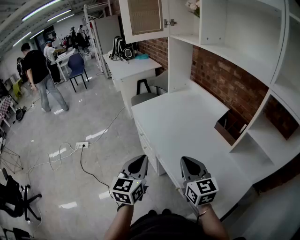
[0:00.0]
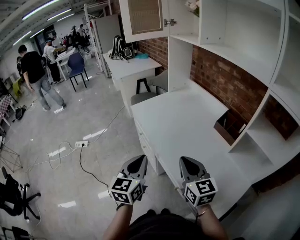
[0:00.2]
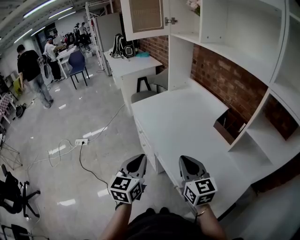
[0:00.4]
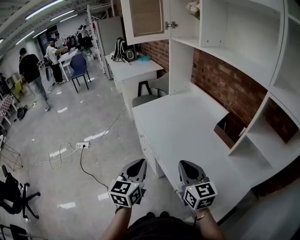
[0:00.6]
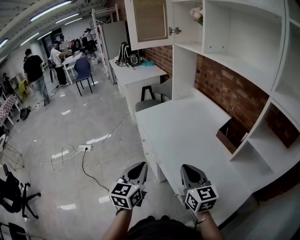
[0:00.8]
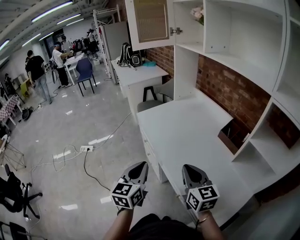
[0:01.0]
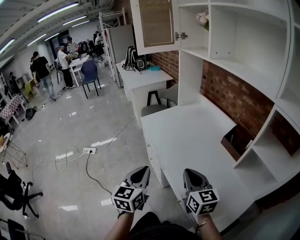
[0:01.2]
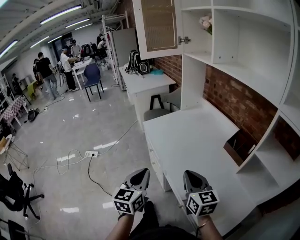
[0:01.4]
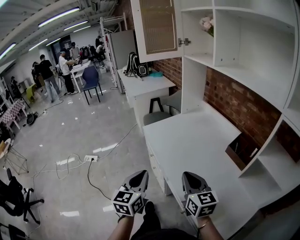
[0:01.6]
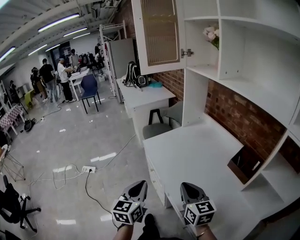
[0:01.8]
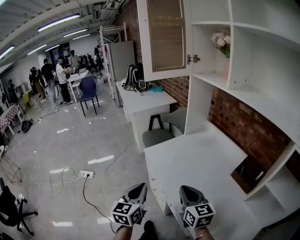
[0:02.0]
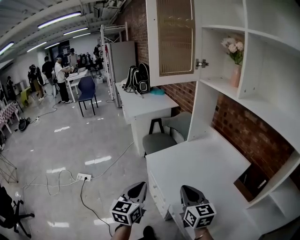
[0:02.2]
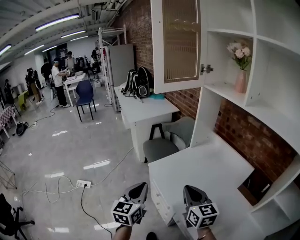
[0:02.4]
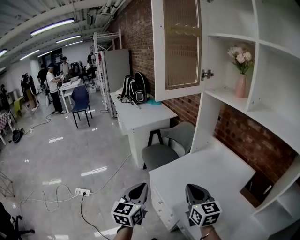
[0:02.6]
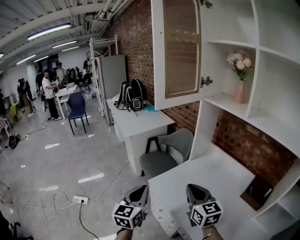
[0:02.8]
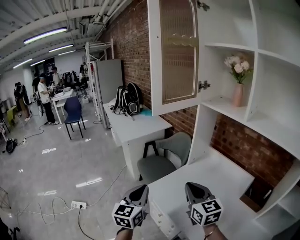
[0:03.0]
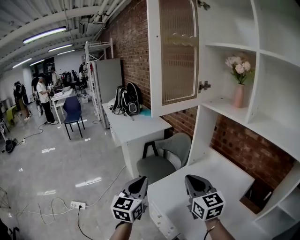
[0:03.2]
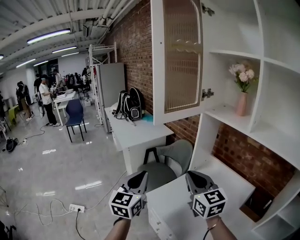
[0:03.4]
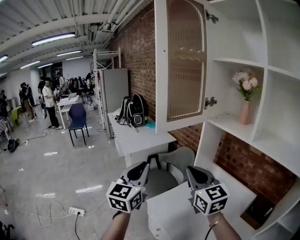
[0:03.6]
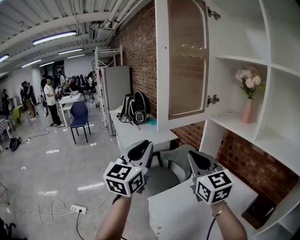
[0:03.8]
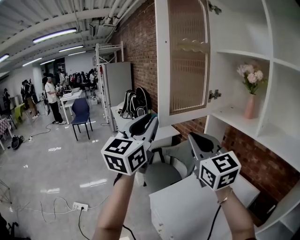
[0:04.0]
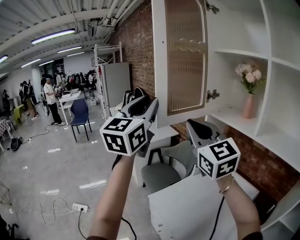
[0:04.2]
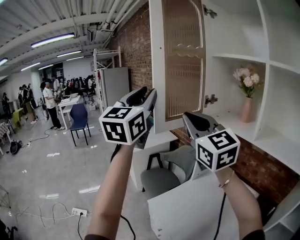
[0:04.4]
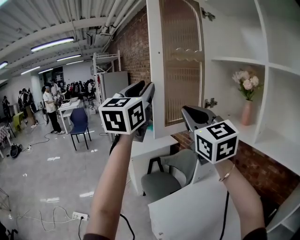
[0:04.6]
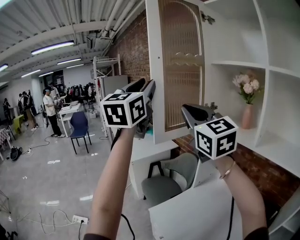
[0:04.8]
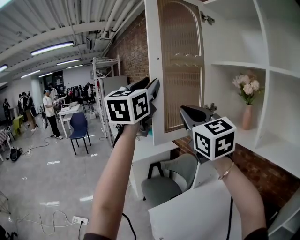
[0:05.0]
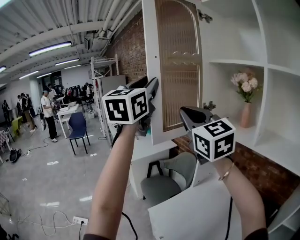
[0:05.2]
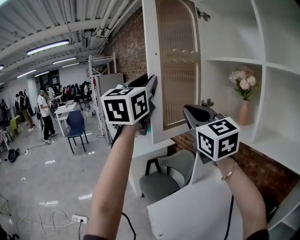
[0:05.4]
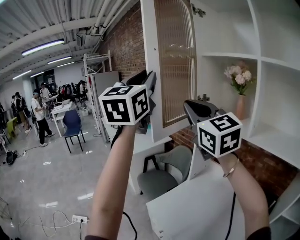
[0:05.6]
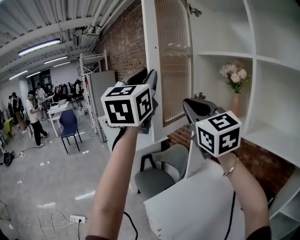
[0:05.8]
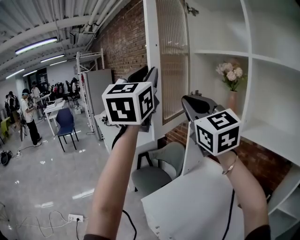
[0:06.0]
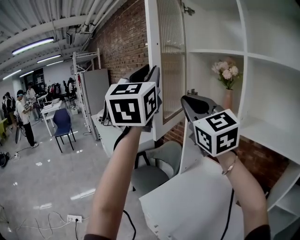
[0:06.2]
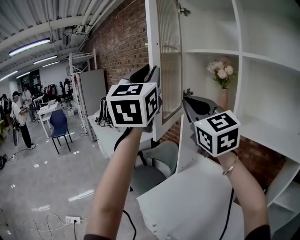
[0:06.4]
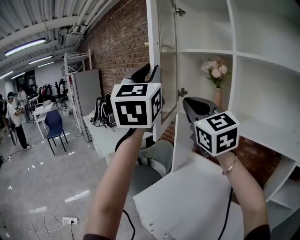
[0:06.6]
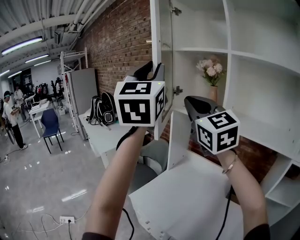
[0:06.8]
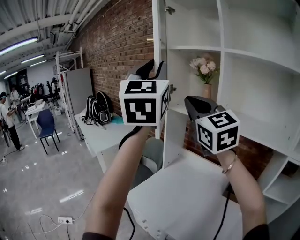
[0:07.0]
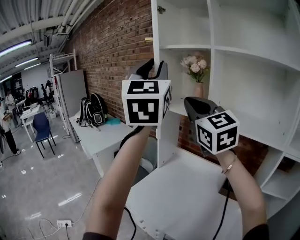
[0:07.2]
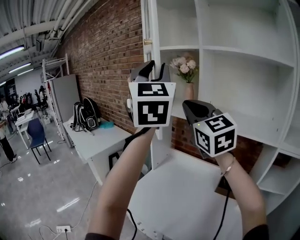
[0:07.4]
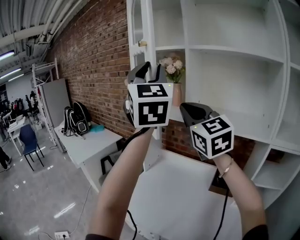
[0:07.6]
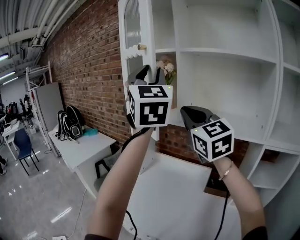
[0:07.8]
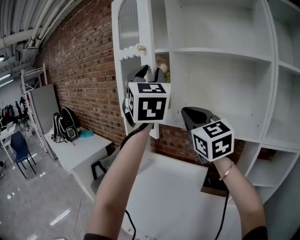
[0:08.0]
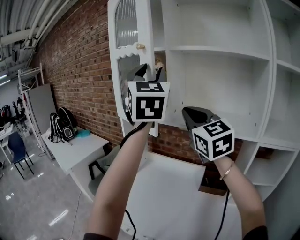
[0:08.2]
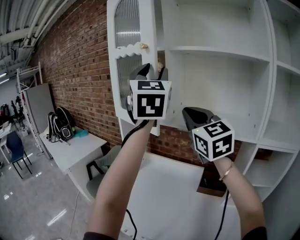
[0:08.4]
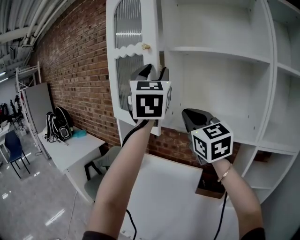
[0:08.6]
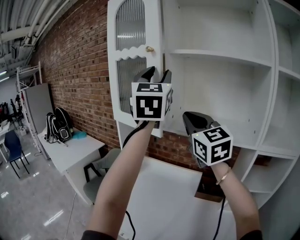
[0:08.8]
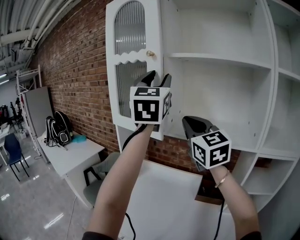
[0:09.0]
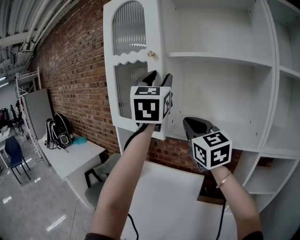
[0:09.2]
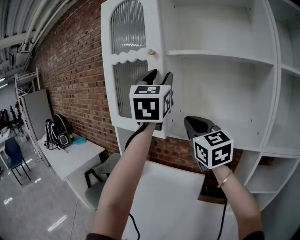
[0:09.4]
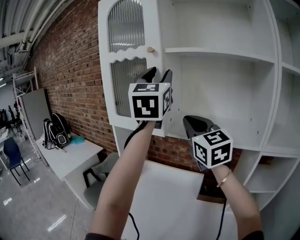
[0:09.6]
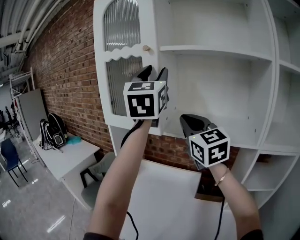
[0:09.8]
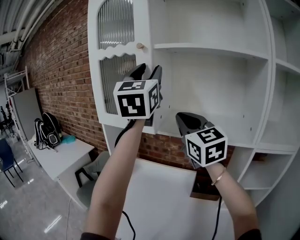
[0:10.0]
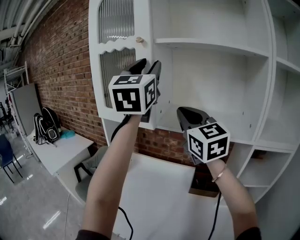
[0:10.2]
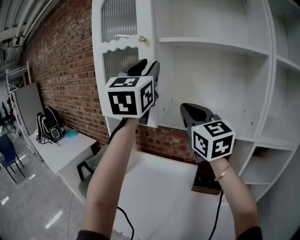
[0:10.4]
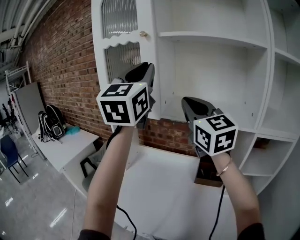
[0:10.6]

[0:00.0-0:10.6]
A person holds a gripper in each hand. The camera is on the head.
0:00.0 to 0:01.6: The left gripper changes place by approximately 5 cm. The right gripper shifts about 5 cm forward.
0:01.6 to 0:03.0: Both grippers travel together forward, approximately 30 cm.
0:03.0 to 0:04.6: Both grippers travel together upward and forward, some 40 cm. The left gripper rotates about 30 degrees, and opens, while the right gripper rotates roughly 30 degrees.
0:04.6 to 0:06.0: The left gripper is displaced to the right by some 5 cm; the right gripper changes place by roughly 5 cm.
0:06.0 to 0:07.6: Both grippers travel together to the right, approximately 20 cm. The right gripper changes its angle by roughly 20 degrees.
0:07.6 to 0:09.0: The left gripper shifts roughly 10 cm to the right and forward; the right gripper goes approximately 10 cm to the right.
0:09.0 to 0:10.6: The left gripper closes its fingers.

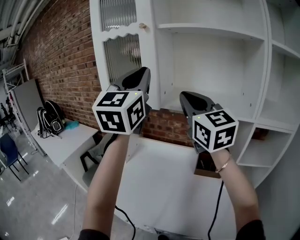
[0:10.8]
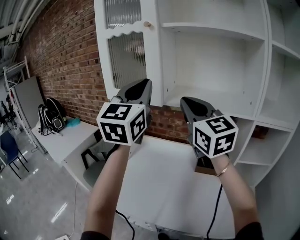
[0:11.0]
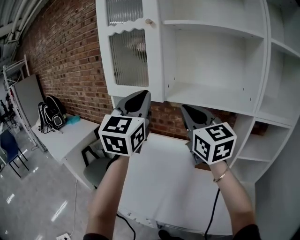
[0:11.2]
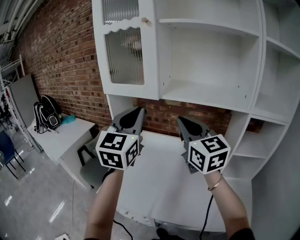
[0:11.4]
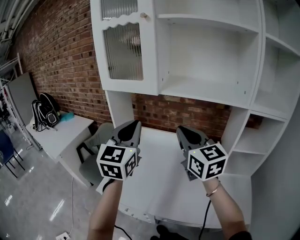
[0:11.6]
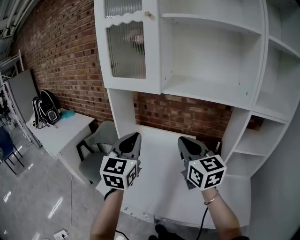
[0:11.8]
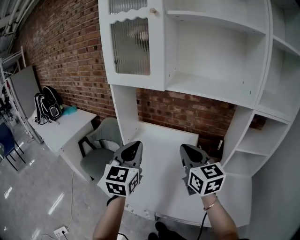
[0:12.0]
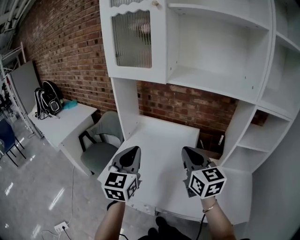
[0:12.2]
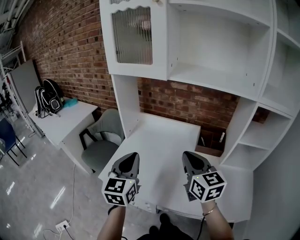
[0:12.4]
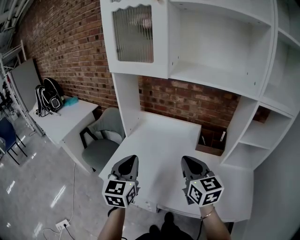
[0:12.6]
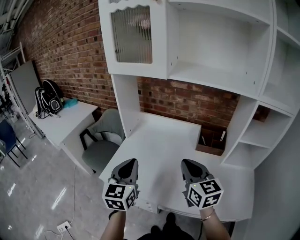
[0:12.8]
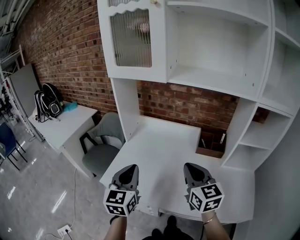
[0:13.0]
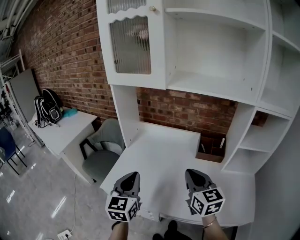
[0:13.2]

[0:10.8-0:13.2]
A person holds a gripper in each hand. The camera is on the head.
0:10.8 to 0:12.0: The left gripper heads downward, covering approximately 30 cm, and swivels about 20 degrees; the right gripper goes approximately 25 cm downward and backward, and swivels approximately 20 degrees.
0:12.0 to 0:13.2: The two grippers go some 10 cm downward and backward.

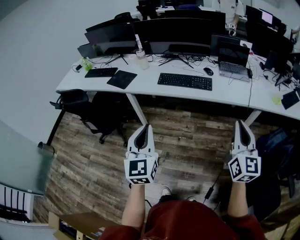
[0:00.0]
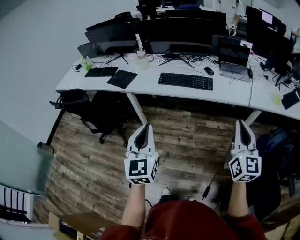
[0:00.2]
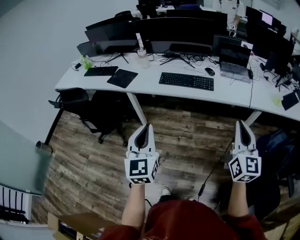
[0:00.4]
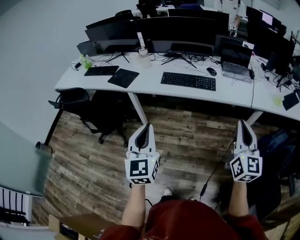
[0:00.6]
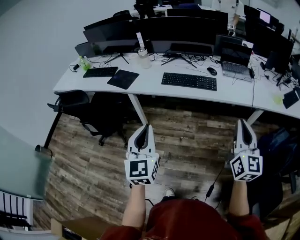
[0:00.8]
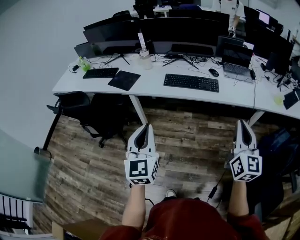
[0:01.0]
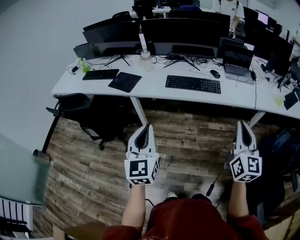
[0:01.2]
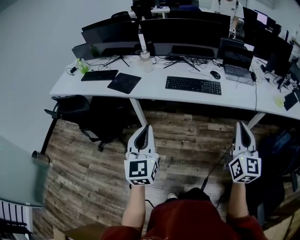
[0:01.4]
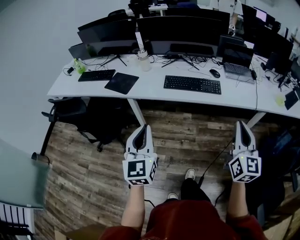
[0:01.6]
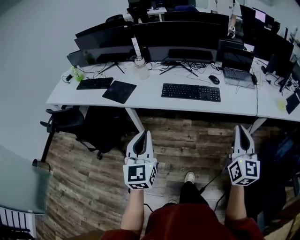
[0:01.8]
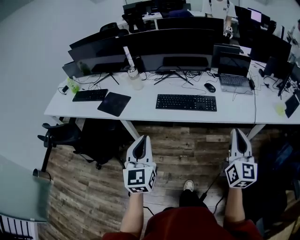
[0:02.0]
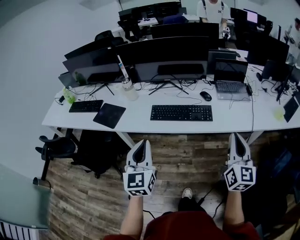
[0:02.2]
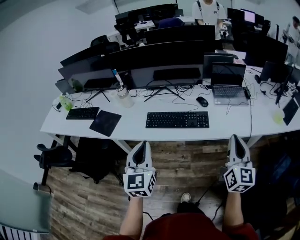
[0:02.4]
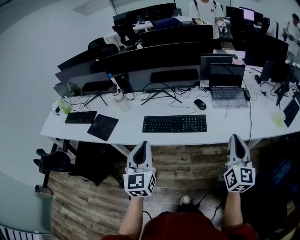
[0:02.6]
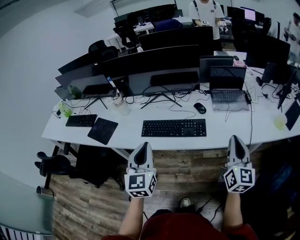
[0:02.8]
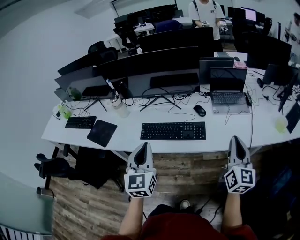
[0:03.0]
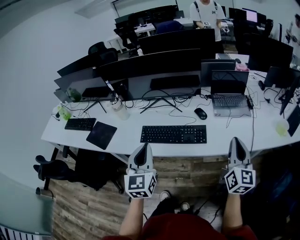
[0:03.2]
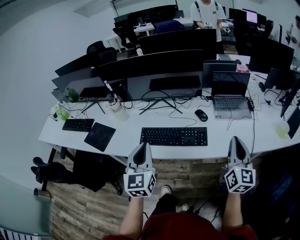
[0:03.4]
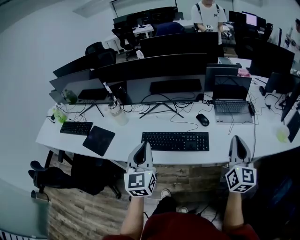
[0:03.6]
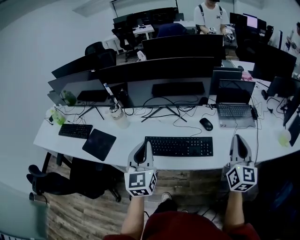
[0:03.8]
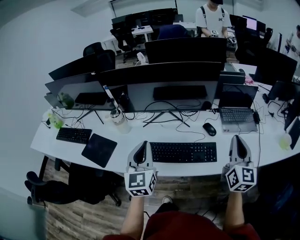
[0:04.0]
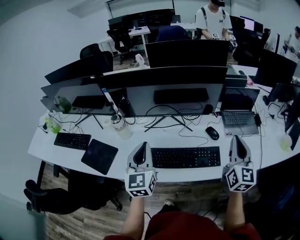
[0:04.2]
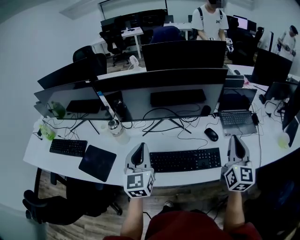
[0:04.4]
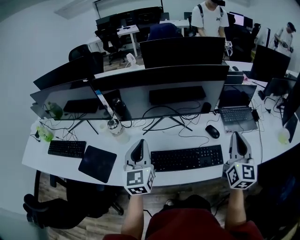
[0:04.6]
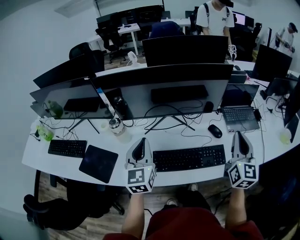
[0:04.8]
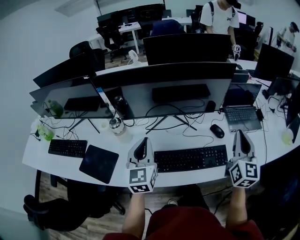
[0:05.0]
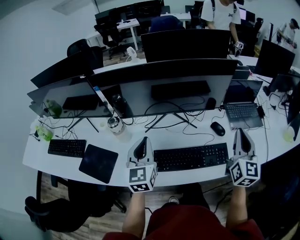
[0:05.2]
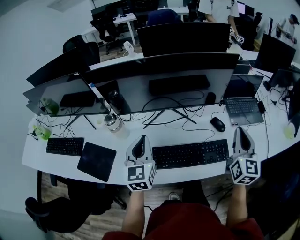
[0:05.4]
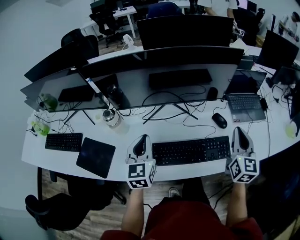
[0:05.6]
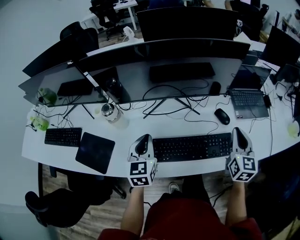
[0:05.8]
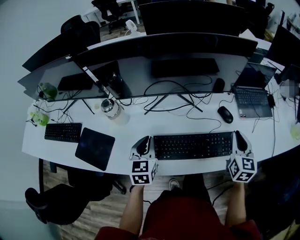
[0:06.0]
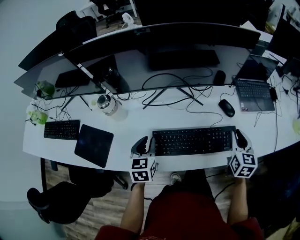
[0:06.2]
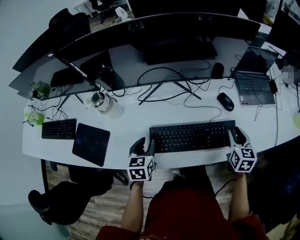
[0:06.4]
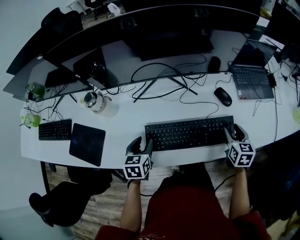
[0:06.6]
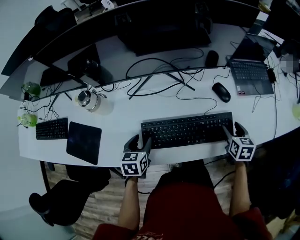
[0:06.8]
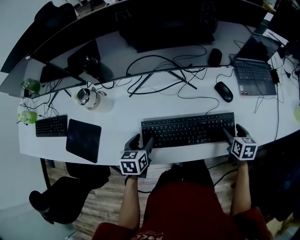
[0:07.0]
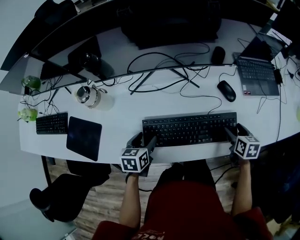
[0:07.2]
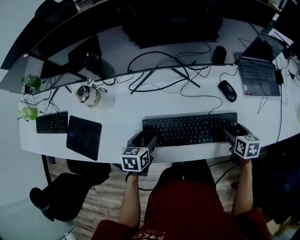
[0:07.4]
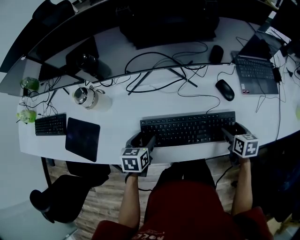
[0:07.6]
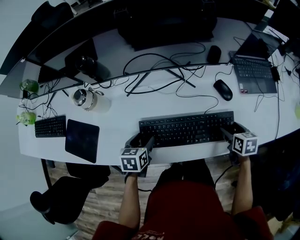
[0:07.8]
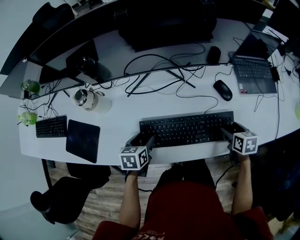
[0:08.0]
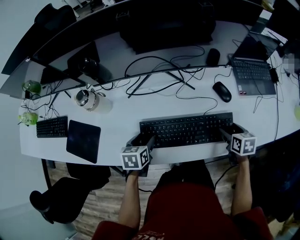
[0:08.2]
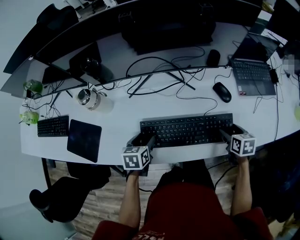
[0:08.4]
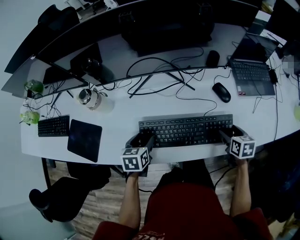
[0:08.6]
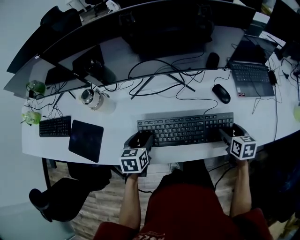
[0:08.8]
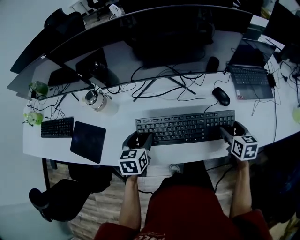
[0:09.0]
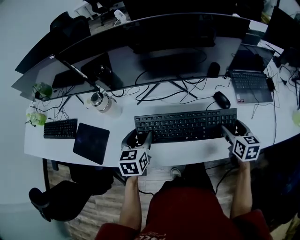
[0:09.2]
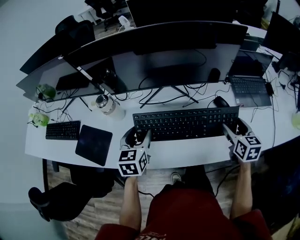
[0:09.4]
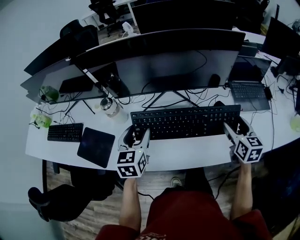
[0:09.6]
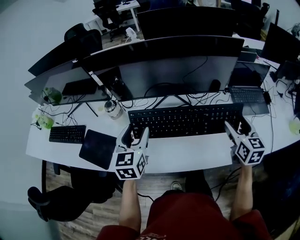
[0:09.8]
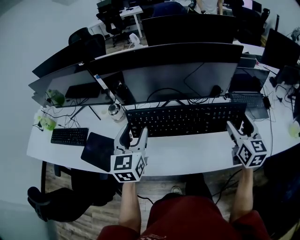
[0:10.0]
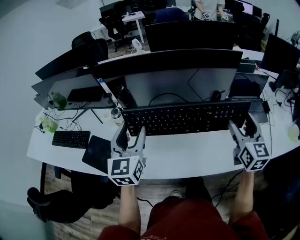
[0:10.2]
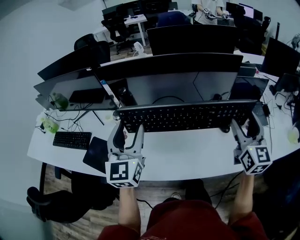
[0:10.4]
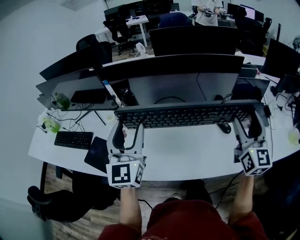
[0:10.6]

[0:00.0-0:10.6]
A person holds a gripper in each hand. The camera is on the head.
0:00.0 to 0:01.6: The grippers both shift to the left and forward by about 15 cm.
0:01.6 to 0:03.0: The grippers both shift forward and to the right by about 35 cm.
0:03.0 to 0:04.6: The two grippers go approximately 25 cm forward and to the left.
0:04.6 to 0:06.0: The two grippers go about 15 cm downward. The right gripper swivels roughly 20 degrees. The left gripper swivels roughly 20 degrees.
0:06.0 to 0:07.6: The grippers both shift downward by roughly 15 cm. The left gripper turns by approximately 30 degrees, and opens up; the right gripper tips its fingers downward by approximately 30 degrees, and opens its fingers.
0:07.6 to 0:09.0: The grippers both shift upward by approximately 5 cm.
0:09.0 to 0:10.6: Both grippers travel together upward, approximately 30 cm. The right gripper angles its fingers upward, by about 50 degrees; the left gripper tilts its fingers some 50 degrees upward.
